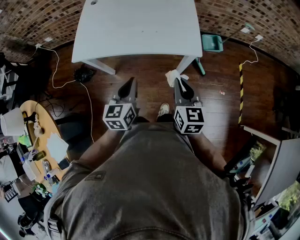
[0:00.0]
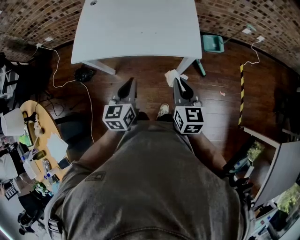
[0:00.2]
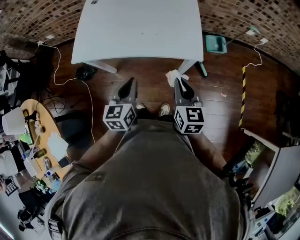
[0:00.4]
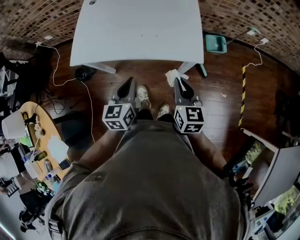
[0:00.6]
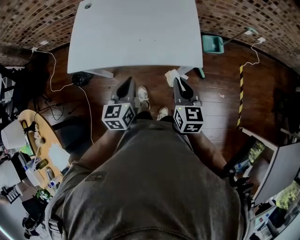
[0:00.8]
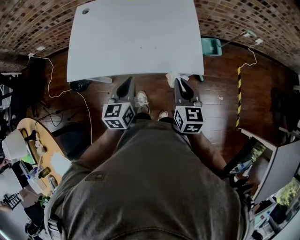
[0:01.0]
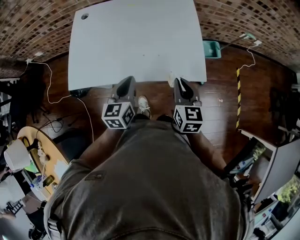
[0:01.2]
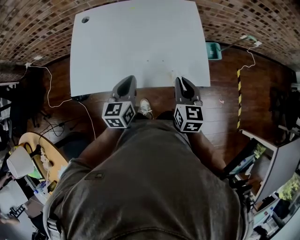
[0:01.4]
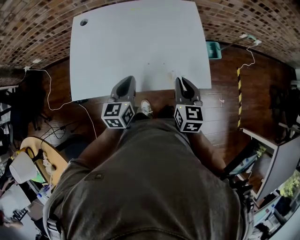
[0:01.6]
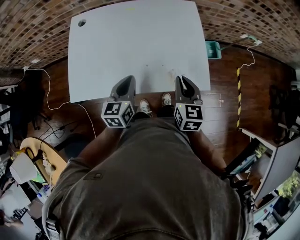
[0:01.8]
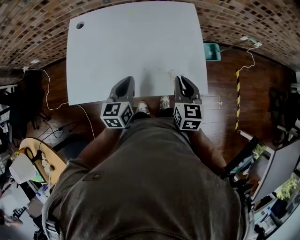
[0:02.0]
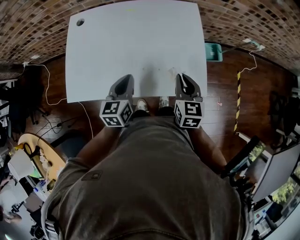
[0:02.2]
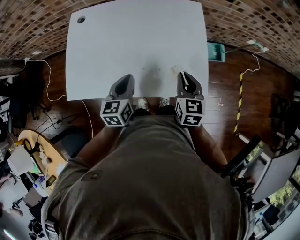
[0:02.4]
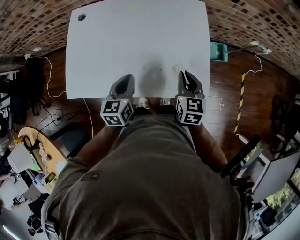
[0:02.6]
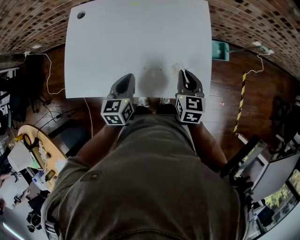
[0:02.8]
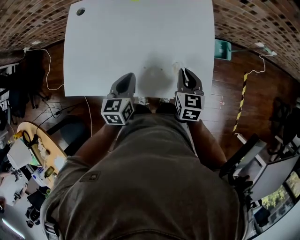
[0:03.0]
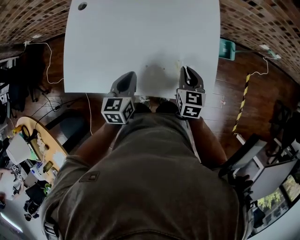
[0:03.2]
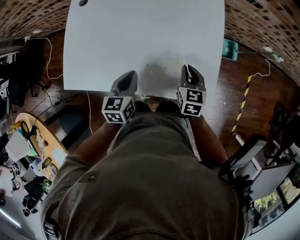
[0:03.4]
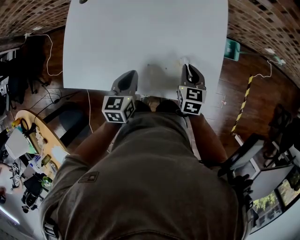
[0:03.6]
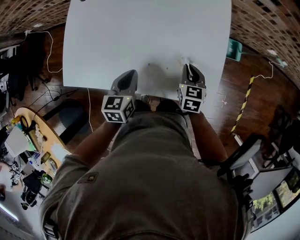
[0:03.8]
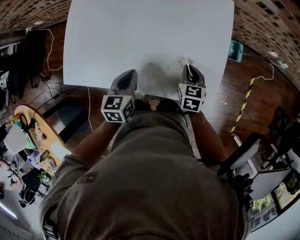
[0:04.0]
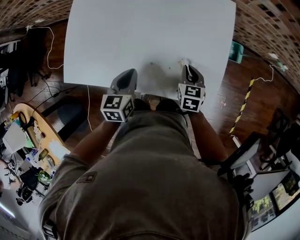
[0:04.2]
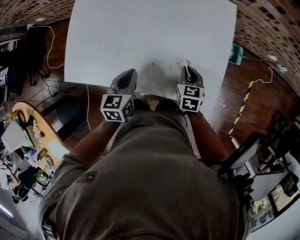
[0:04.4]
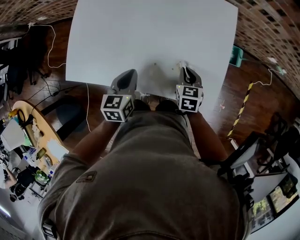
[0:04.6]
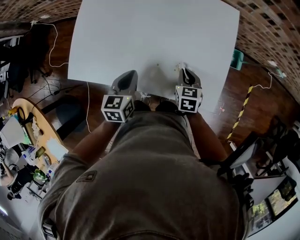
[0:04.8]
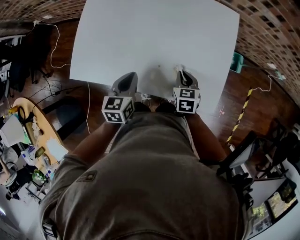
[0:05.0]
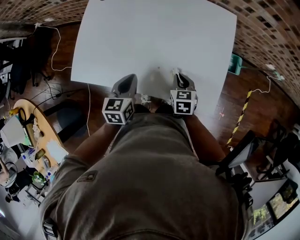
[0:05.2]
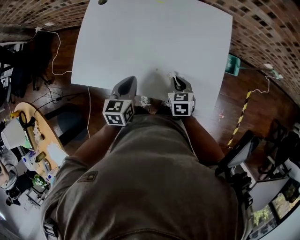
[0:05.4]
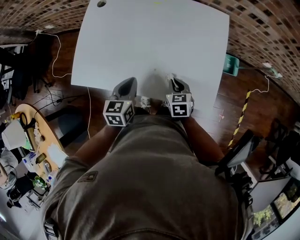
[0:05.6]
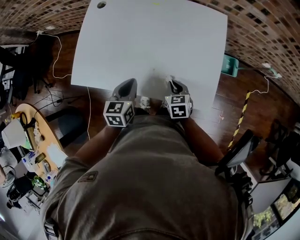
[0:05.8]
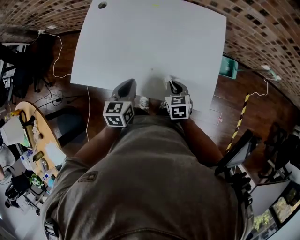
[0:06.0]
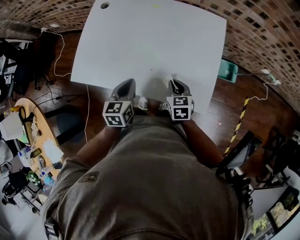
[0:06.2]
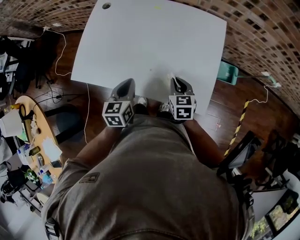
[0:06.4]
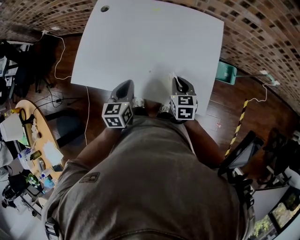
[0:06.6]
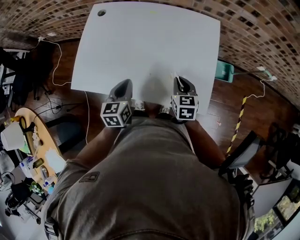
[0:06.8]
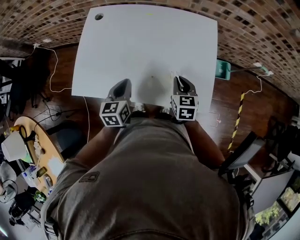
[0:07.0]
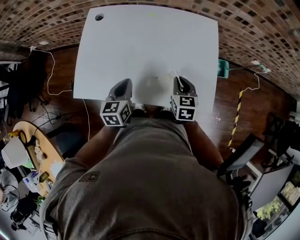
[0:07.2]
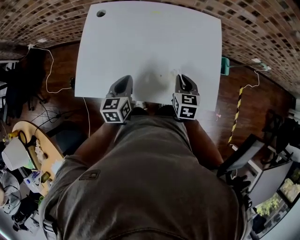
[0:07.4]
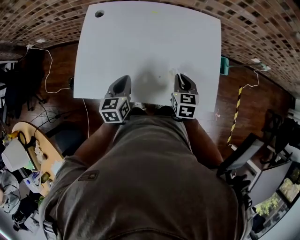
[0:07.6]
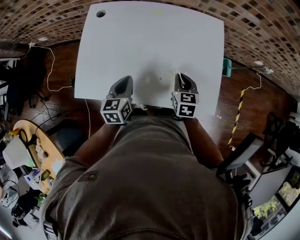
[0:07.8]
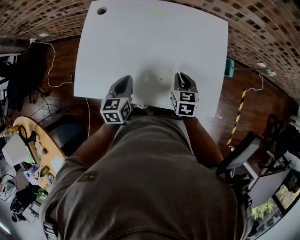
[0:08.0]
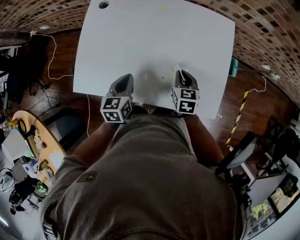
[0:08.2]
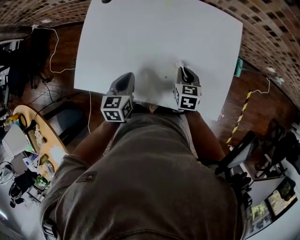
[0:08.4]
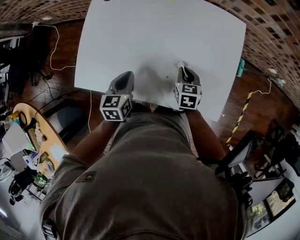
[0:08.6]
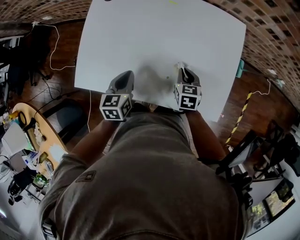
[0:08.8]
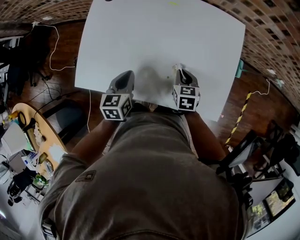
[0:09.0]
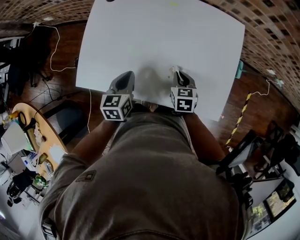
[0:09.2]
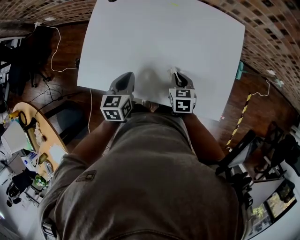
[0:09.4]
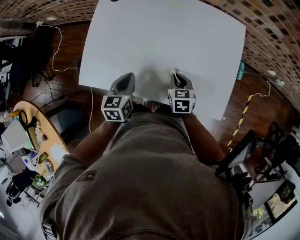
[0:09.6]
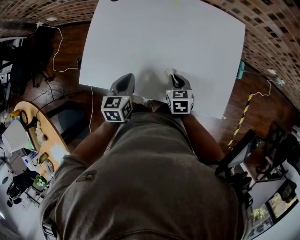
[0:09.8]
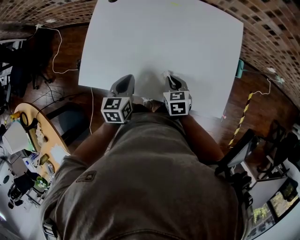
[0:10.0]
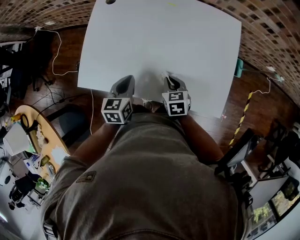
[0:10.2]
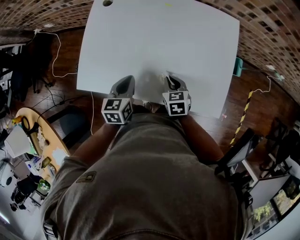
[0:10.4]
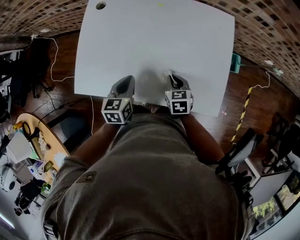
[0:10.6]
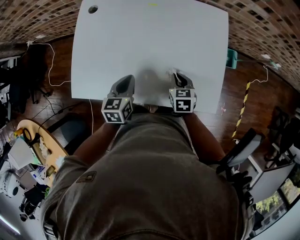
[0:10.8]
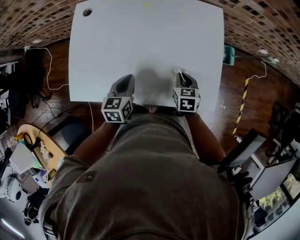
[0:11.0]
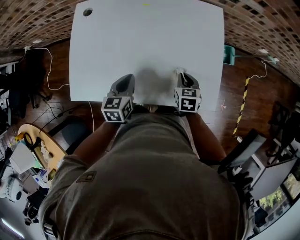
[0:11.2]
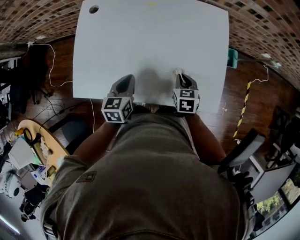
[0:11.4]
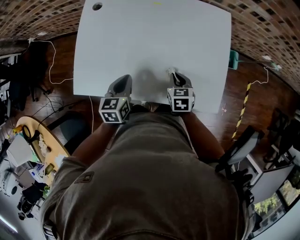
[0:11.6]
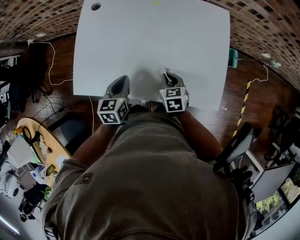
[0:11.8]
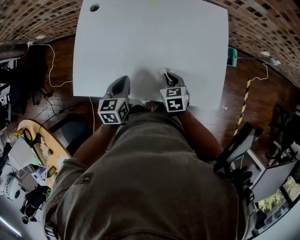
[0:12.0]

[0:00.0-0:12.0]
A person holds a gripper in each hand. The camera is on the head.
0.0 to 1.6 s: The grippers both shift forward by approximately 20 cm.
1.6 to 3.0 s: The right gripper moves forward and downward, approximately 15 cm, while the left gripper travels forward and downward by roughly 5 cm.
3.0 to 4.4 s: The right gripper goes some 10 cm downward.
4.4 to 6.0 s: The right gripper moves to the left, about 5 cm.
6.0 to 7.6 s: The left gripper is displaced to the left and forward by roughly 10 cm; the right gripper heads upward and forward, covering some 10 cm.
7.6 to 9.0 s: The right gripper heads downward, covering roughly 10 cm.
9.0 to 10.4 s: The right gripper goes roughly 5 cm to the left.
10.4 to 12.0 s: The right gripper moves roughly 10 cm to the right and comes back.

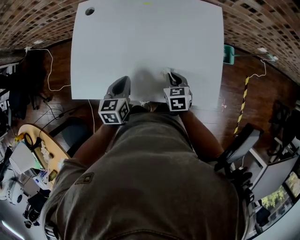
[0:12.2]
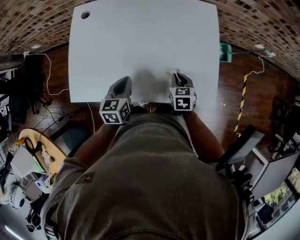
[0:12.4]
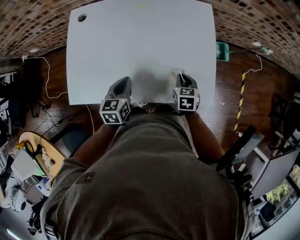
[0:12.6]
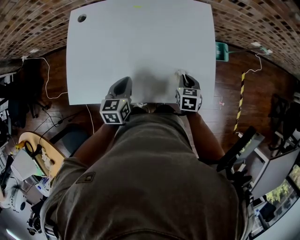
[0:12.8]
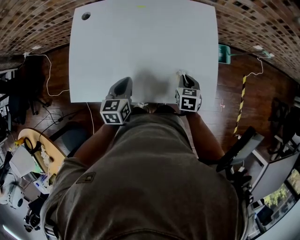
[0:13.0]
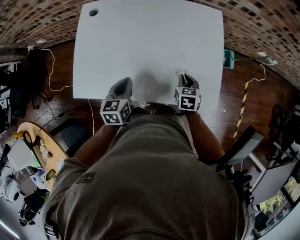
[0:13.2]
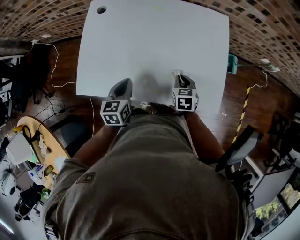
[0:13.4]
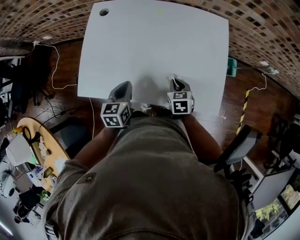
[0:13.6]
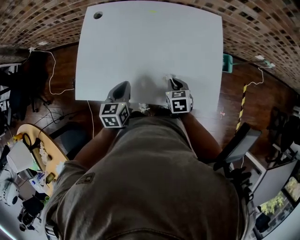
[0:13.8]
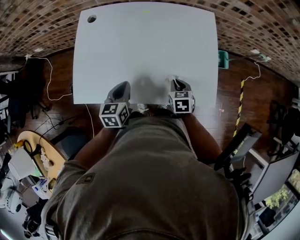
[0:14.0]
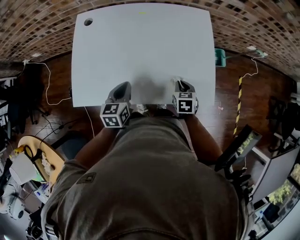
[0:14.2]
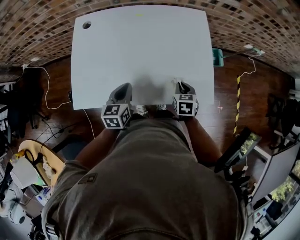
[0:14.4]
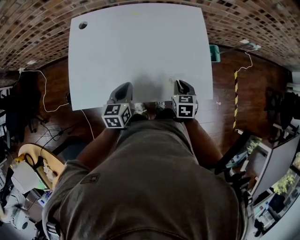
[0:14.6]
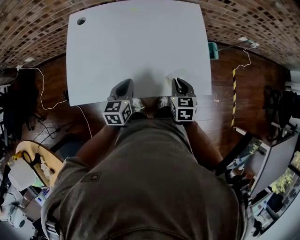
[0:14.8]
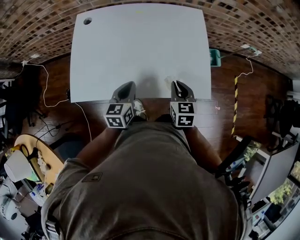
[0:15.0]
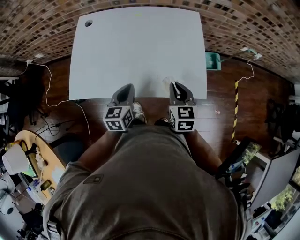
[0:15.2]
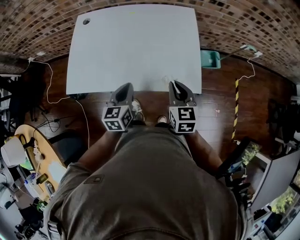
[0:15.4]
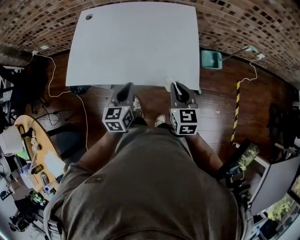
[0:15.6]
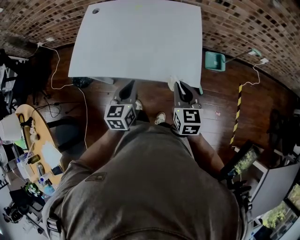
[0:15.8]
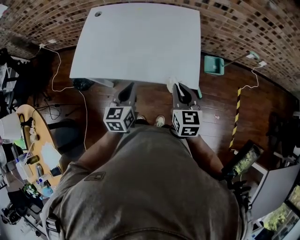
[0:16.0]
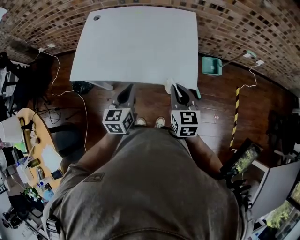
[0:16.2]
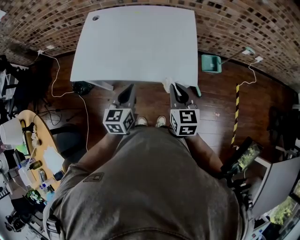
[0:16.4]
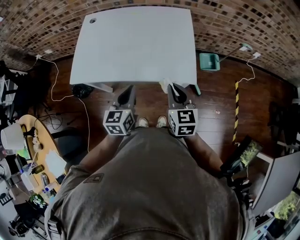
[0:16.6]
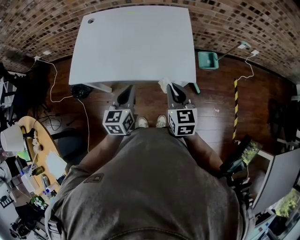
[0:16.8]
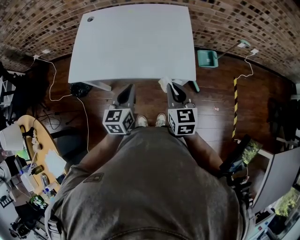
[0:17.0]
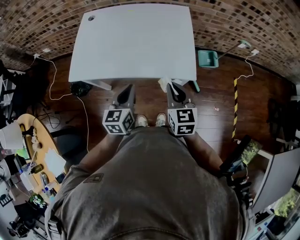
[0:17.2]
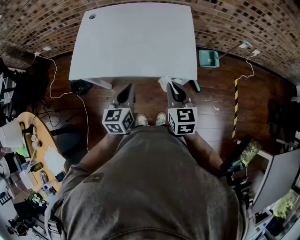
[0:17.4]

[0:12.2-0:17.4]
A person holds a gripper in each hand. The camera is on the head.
12.2 to 14.0 s: The right gripper goes left and right, approximately 10 cm each way, reversing 2 times.
14.0 to 15.6 s: The left gripper moves to the right, backward and upward, some 20 cm. The right gripper shifts some 20 cm upward, backward and to the right, and rotates approximately 30 degrees.
15.6 to 17.4 s: Both grippers travel together backward, roughly 5 cm.

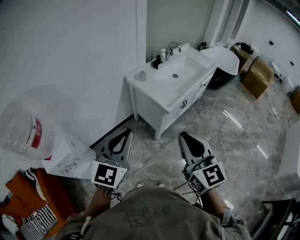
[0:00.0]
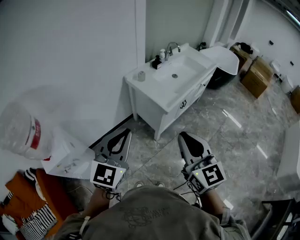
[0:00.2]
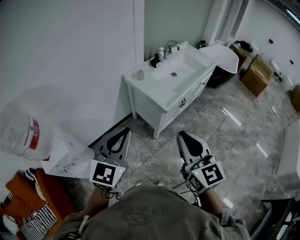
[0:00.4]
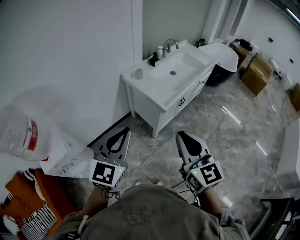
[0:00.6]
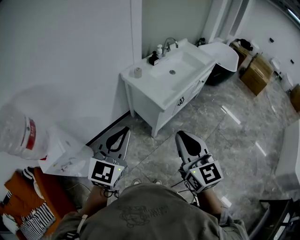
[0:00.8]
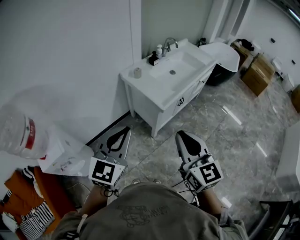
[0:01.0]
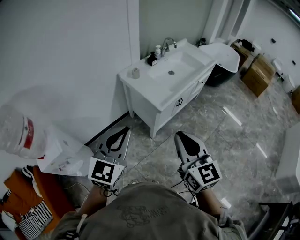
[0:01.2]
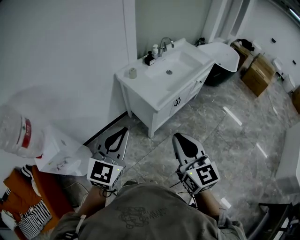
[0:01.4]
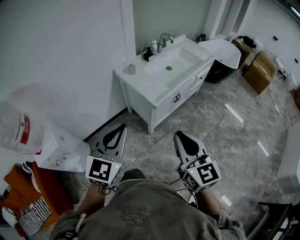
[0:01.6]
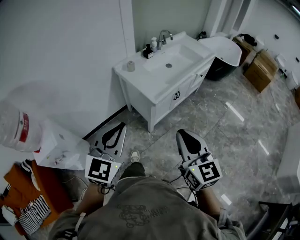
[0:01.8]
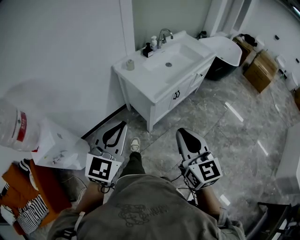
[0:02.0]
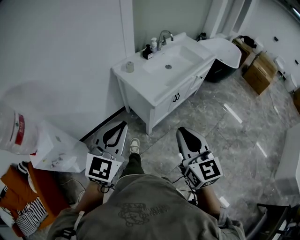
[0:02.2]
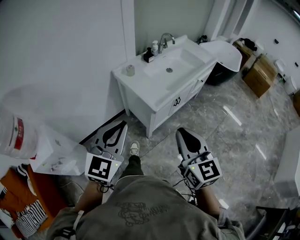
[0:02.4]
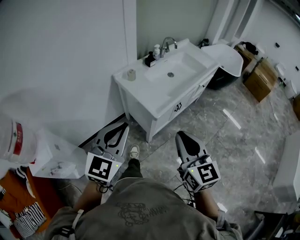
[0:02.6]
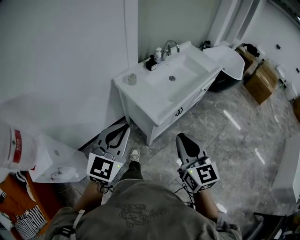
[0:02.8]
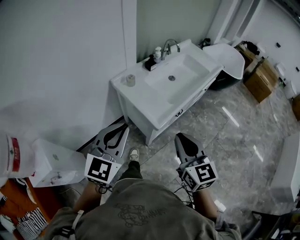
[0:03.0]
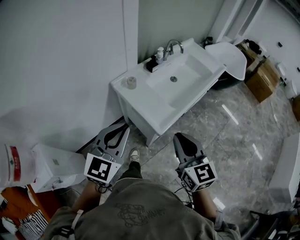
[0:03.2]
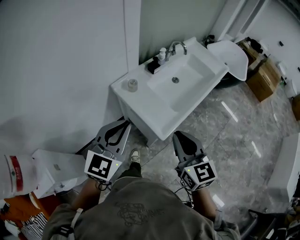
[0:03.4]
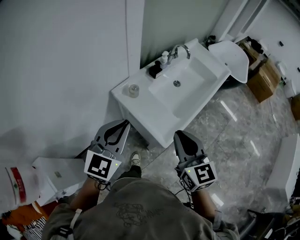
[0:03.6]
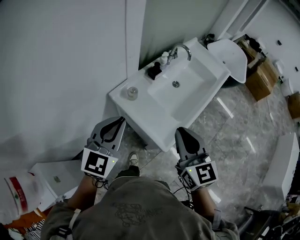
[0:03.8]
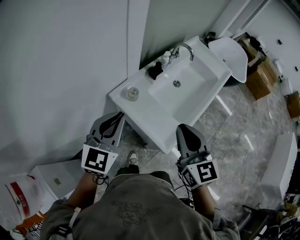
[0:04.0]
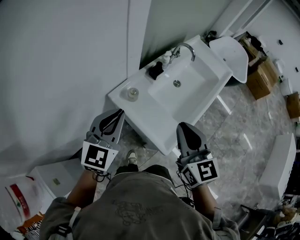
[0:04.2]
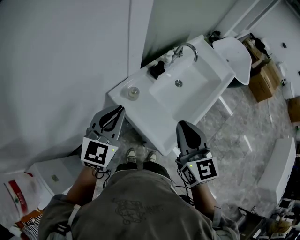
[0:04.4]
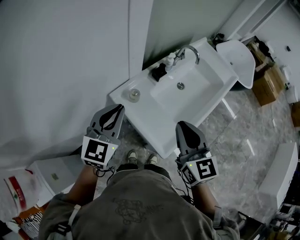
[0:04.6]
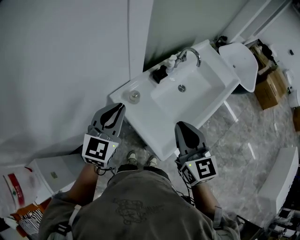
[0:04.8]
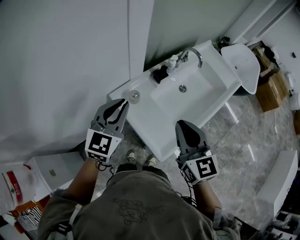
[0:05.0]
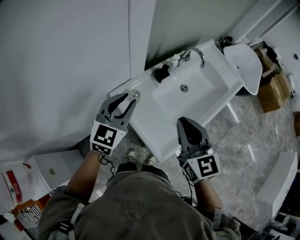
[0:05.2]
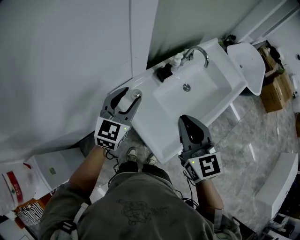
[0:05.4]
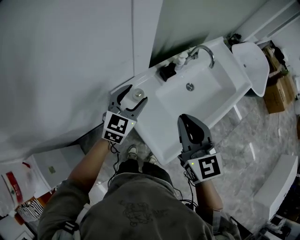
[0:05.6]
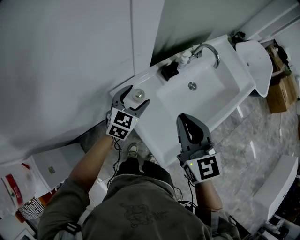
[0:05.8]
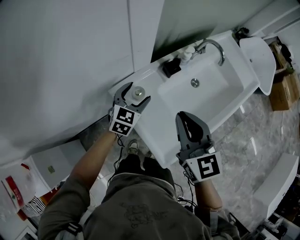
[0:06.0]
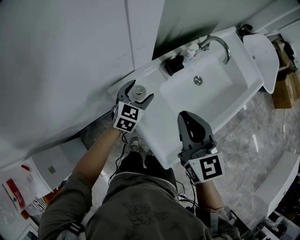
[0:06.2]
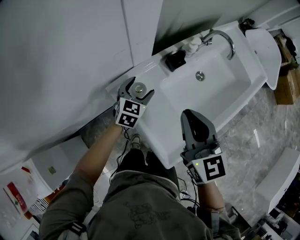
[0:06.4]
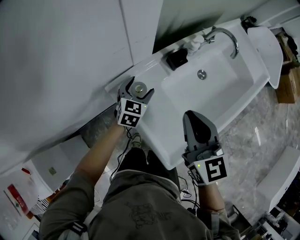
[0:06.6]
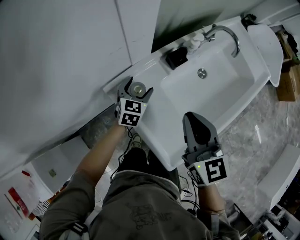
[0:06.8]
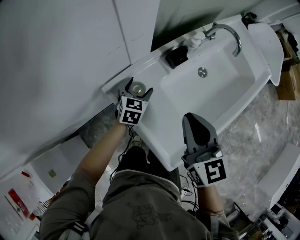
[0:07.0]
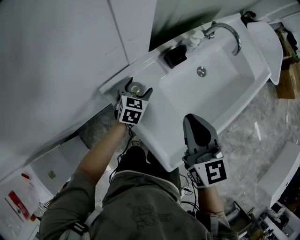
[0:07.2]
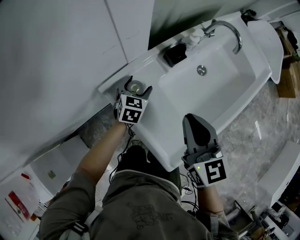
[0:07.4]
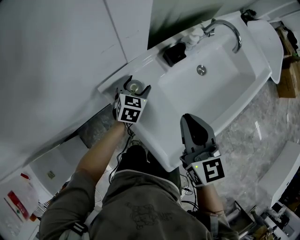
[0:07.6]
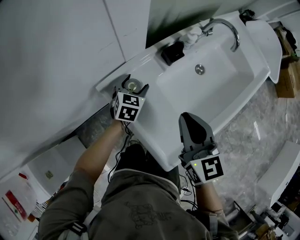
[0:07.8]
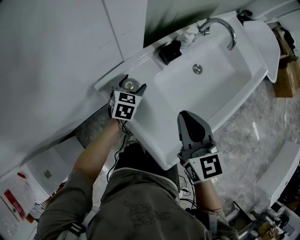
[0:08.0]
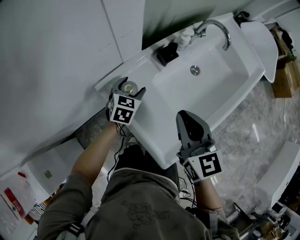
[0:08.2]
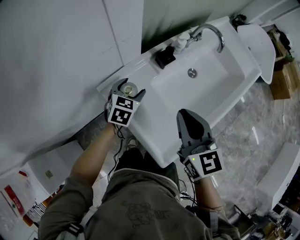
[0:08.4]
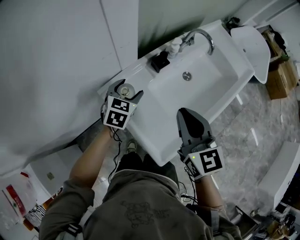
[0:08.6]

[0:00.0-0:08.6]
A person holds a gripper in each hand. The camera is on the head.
0.0 to 1.4 s: The two grippers go approximately 5 cm to the right.
1.4 to 2.8 s: Both grippers travel together forward, about 15 cm.
2.8 to 4.4 s: Both grippers travel together forward, approximately 30 cm.
4.4 to 5.8 s: The left gripper goes roughly 25 cm downward and forward, and opens; the right gripper moves forward, some 10 cm.
5.8 to 7.2 s: The right gripper travels downward by some 10 cm; the left gripper is displaced downward by some 15 cm.
7.2 to 8.6 s: The right gripper ends up approximately 5 cm from where it was, while the left gripper travels upward by about 10 cm.
